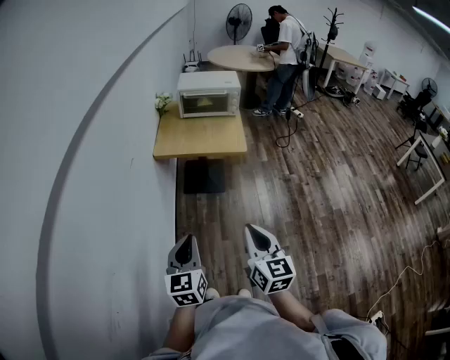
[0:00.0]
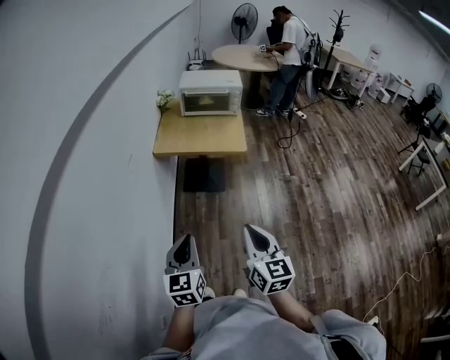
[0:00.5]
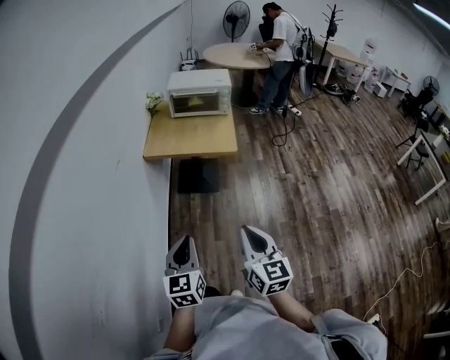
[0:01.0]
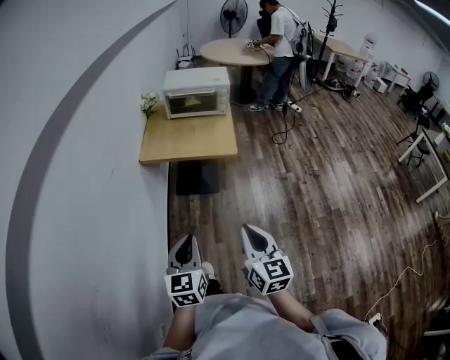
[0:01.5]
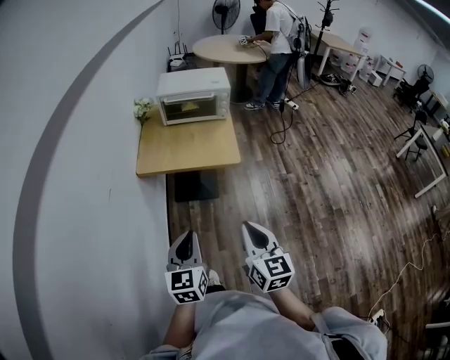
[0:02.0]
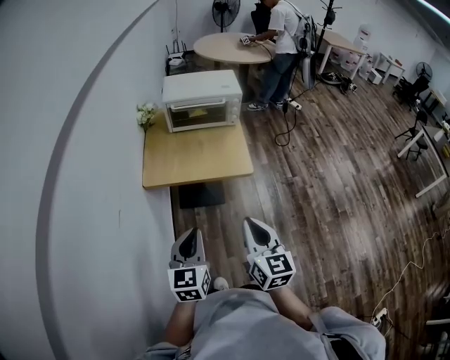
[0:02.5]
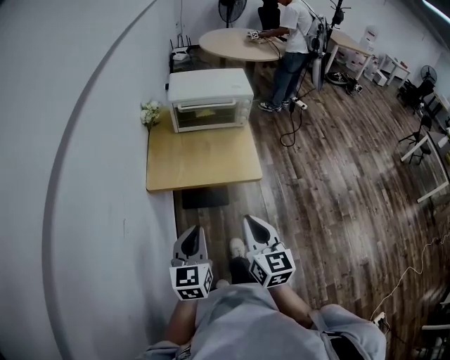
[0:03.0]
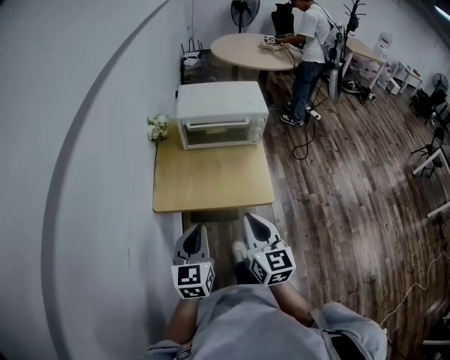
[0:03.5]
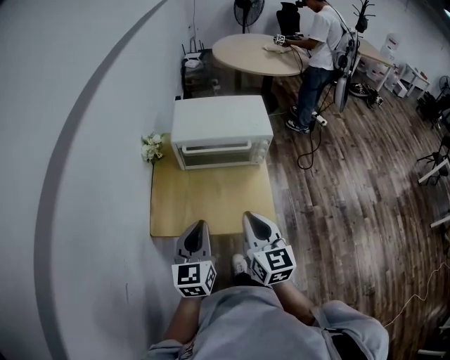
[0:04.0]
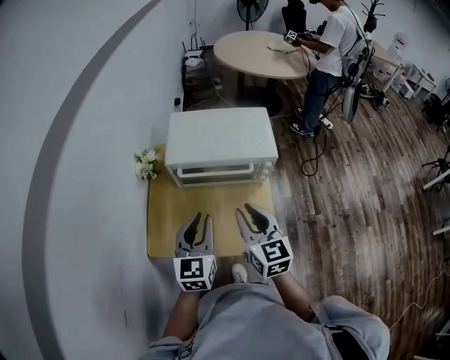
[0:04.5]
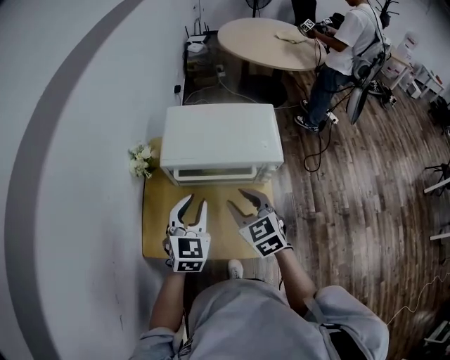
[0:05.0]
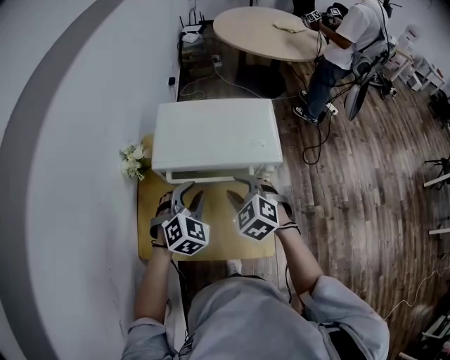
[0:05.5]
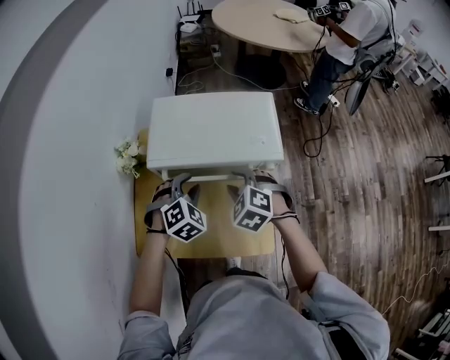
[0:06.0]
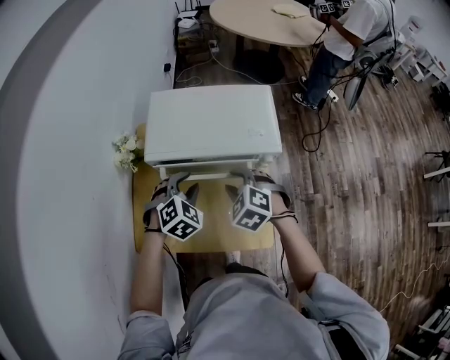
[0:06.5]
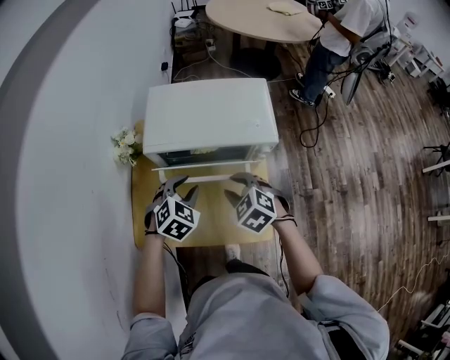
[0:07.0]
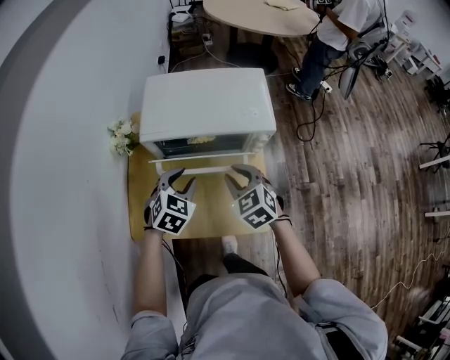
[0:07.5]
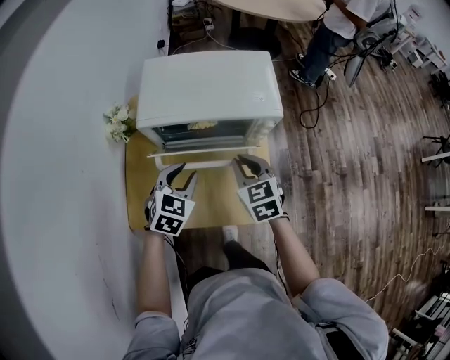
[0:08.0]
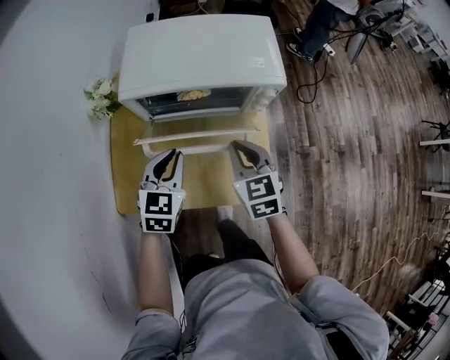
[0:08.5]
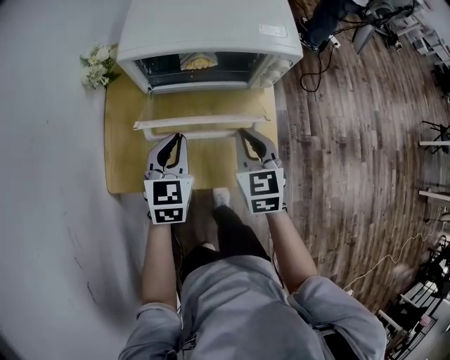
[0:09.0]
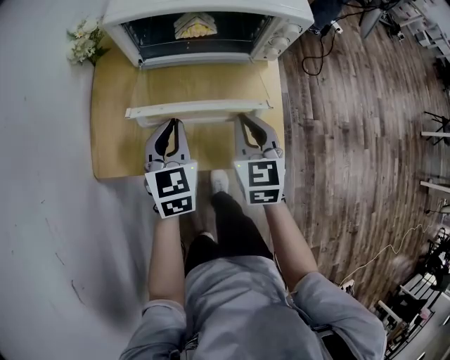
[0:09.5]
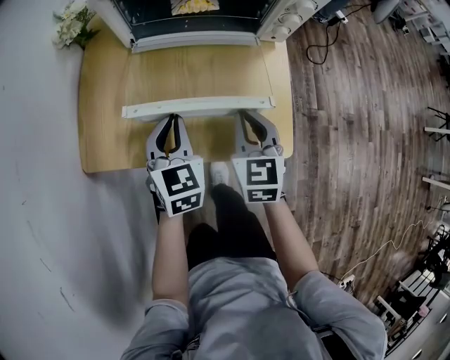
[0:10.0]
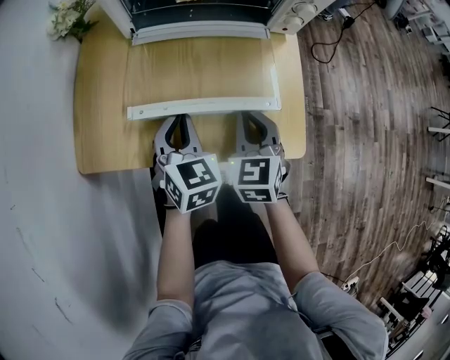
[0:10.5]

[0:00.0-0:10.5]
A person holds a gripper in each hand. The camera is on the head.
0:00.0 to 0:02.0: The two grippers go roughly 15 cm forward.
0:02.0 to 0:04.0: The two grippers travel together, forward, some 40 cm.
0:04.0 to 0:06.5: Both grippers move forward and downward, some 30 cm. The left gripper angles its fingers downward, by about 40 degrees, and opens its fingers; the right gripper angles its fingers downward, by some 40 degrees, and opens.
0:06.5 to 0:08.5: The two grippers go roughly 5 cm backward. The left gripper rotates approximately 40 degrees, and closes up. Meanwhile the right gripper turns by about 40 degrees, and closes up.
0:08.5 to 0:10.5: The left gripper shifts some 20 cm downward, while the right gripper is displaced downward and backward by approximately 20 cm.

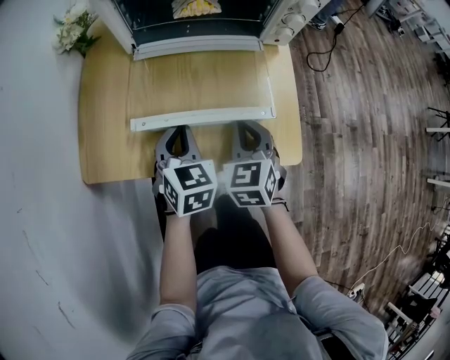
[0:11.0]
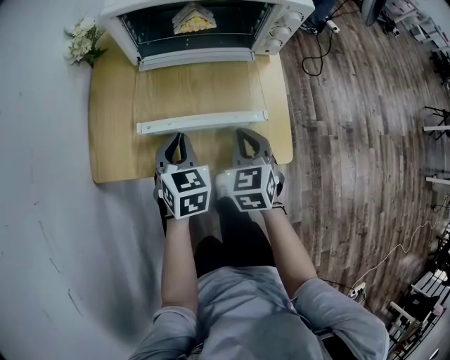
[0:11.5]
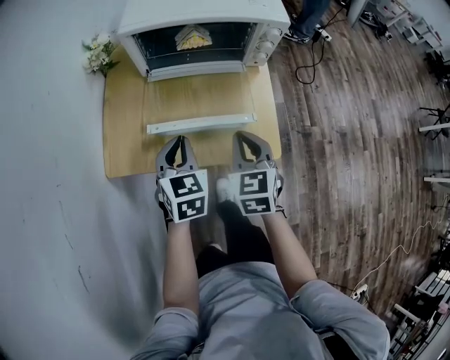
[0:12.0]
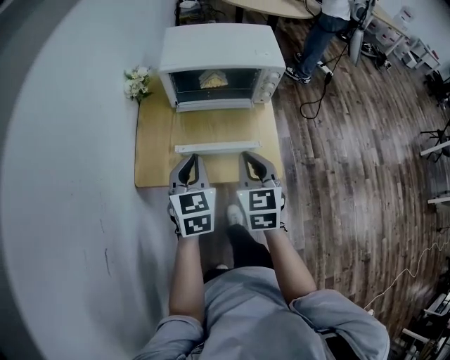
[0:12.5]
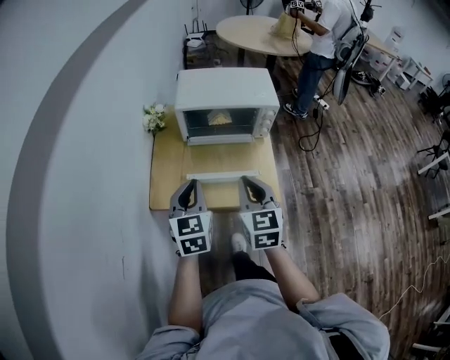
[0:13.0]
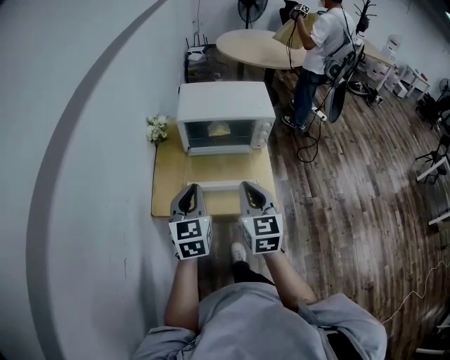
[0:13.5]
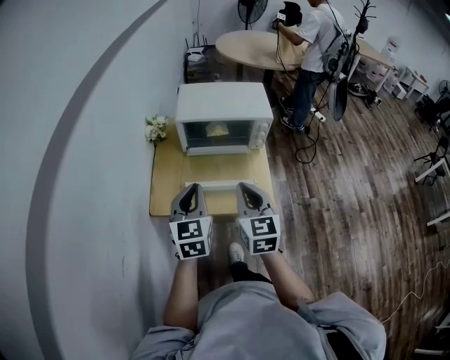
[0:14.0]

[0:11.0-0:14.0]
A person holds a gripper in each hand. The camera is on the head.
0:11.0 to 0:12.5: Both grippers travel together upward, approximately 25 cm.
0:12.5 to 0:14.0: Both grippers move upward, roughly 10 cm.

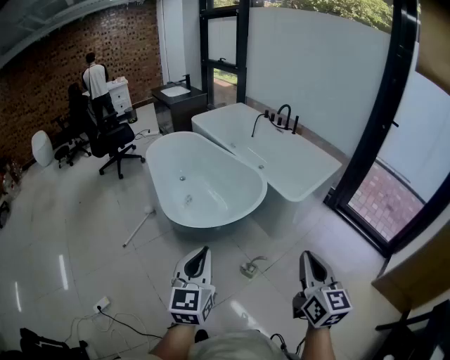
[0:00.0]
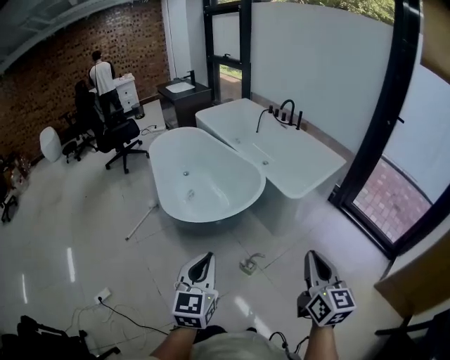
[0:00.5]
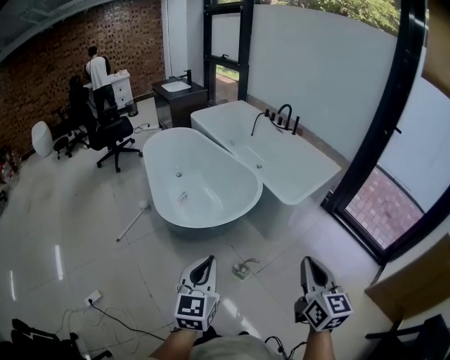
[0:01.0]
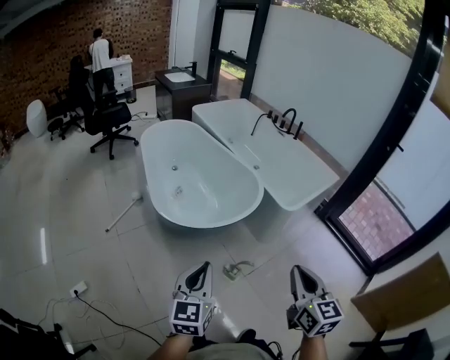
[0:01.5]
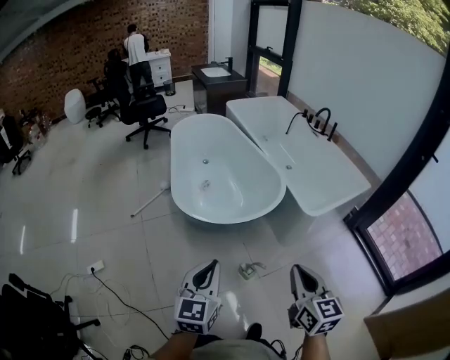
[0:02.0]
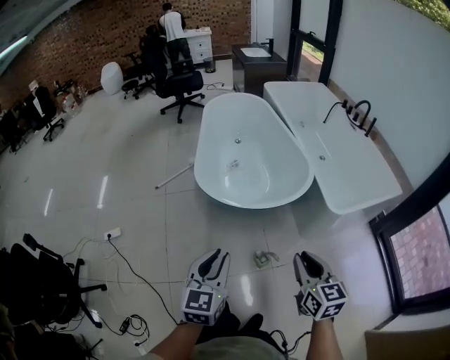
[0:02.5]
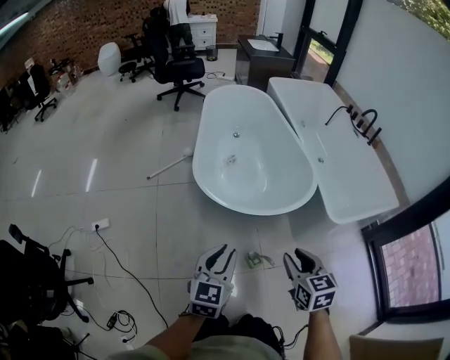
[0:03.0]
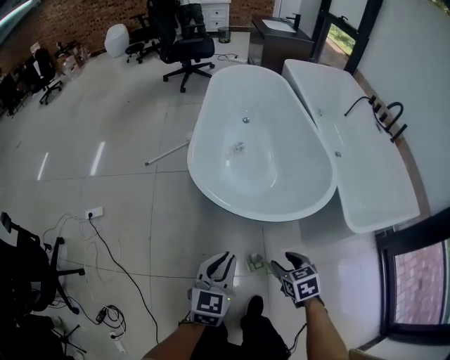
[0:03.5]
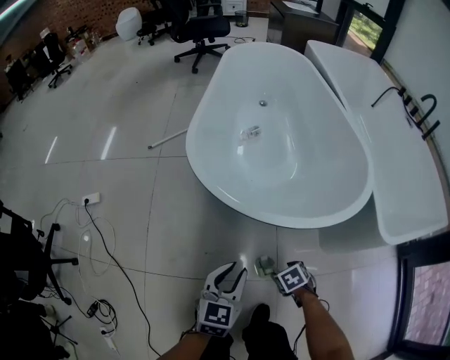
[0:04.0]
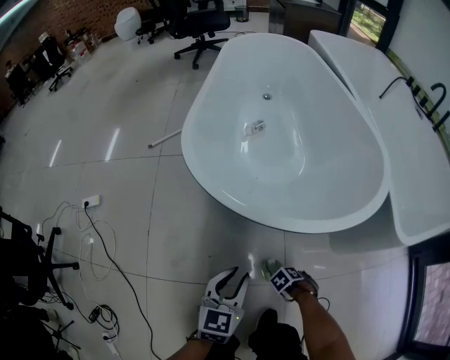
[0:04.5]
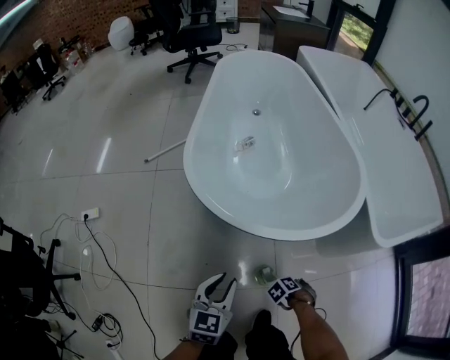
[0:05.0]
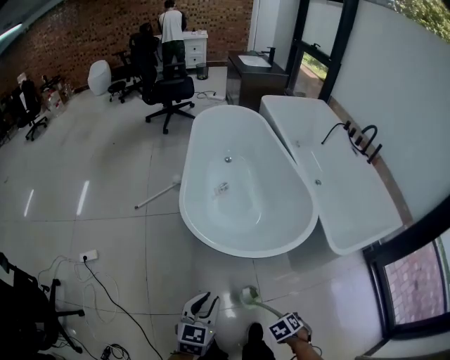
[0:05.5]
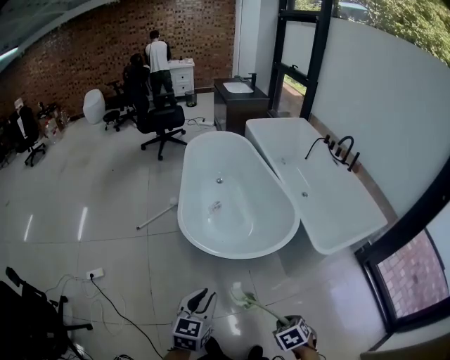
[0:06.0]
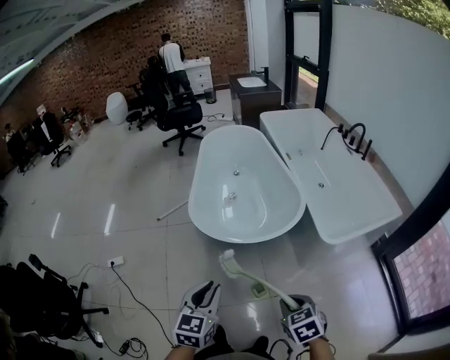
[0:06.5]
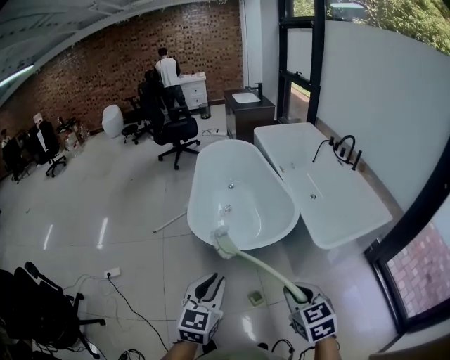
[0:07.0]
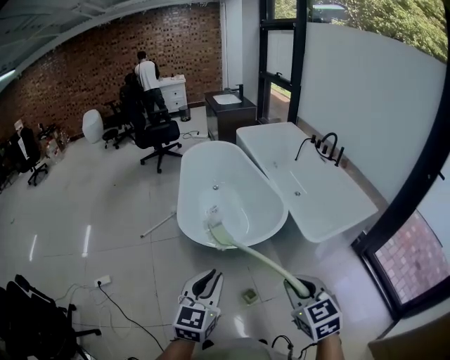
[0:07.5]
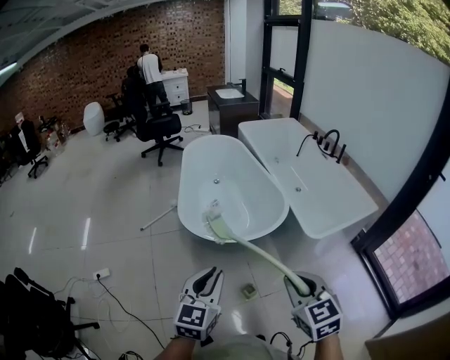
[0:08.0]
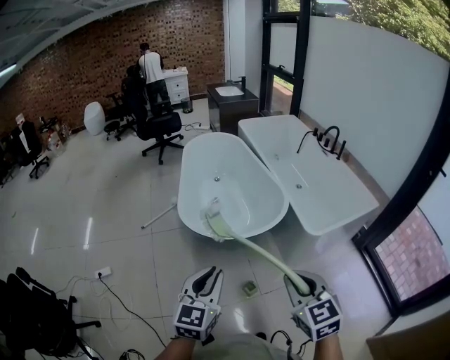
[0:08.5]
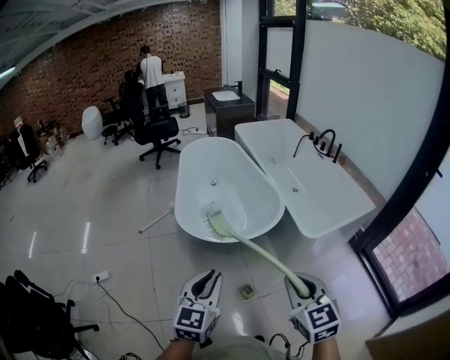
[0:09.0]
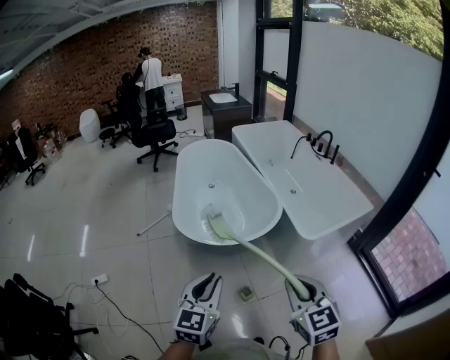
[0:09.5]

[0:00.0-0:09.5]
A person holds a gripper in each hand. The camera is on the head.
0:00.0 to 0:02.0: The left gripper goes left and right, roughly 10 cm each way, reversing 2 times. The right gripper goes some 15 cm forward, downward and to the right, and changes its angle by roughly 20 degrees.
0:02.0 to 0:04.0: The grippers both shift downward by some 70 cm. The right gripper points its fingers approximately 60 degrees further downward, and opens up, while the left gripper turns by some 20 degrees, and opens.
0:04.0 to 0:05.5: The grippers both shift upward by roughly 35 cm. The right gripper changes its angle by approximately 20 degrees, and closes up.
0:05.5 to 0:07.5: The left gripper moves upward, approximately 30 cm. The right gripper is displaced upward by roughly 50 cm, and tips its fingers upward by some 60 degrees.
0:07.5 to 0:09.5: The grippers move only a little.

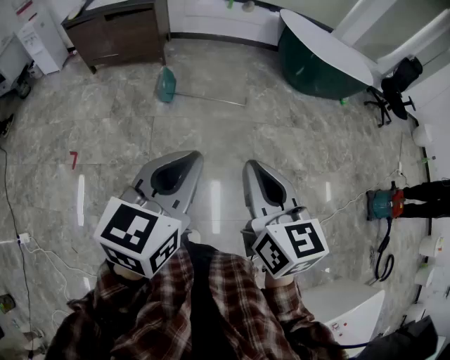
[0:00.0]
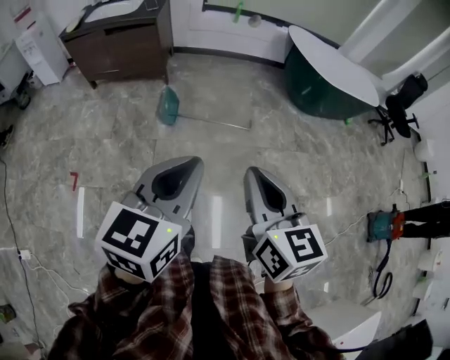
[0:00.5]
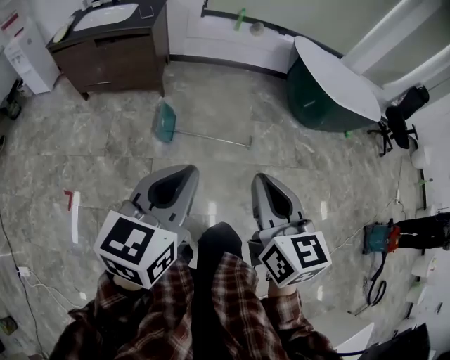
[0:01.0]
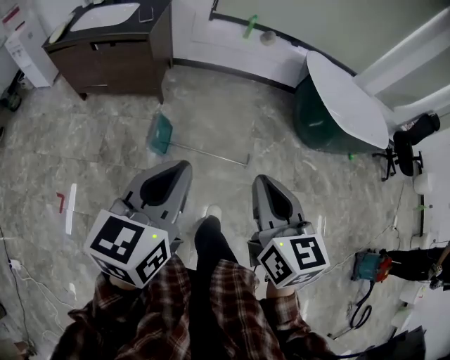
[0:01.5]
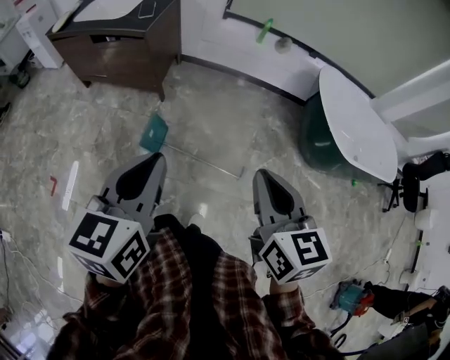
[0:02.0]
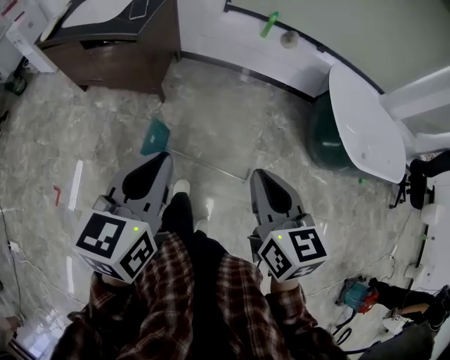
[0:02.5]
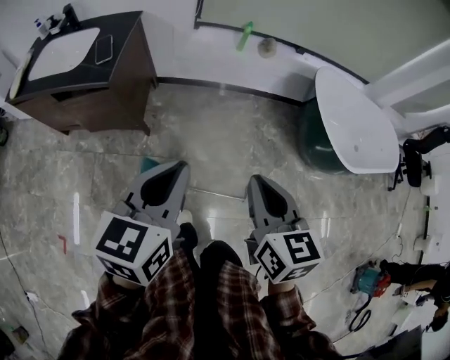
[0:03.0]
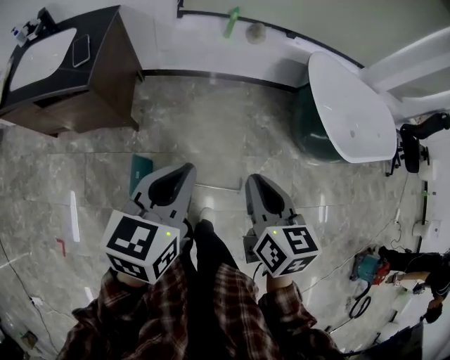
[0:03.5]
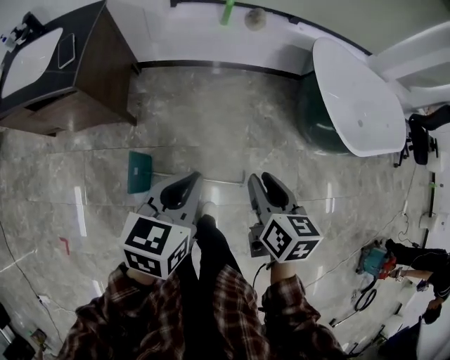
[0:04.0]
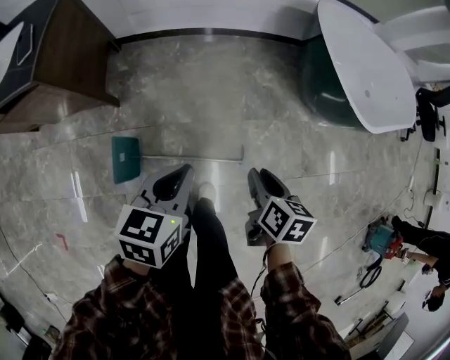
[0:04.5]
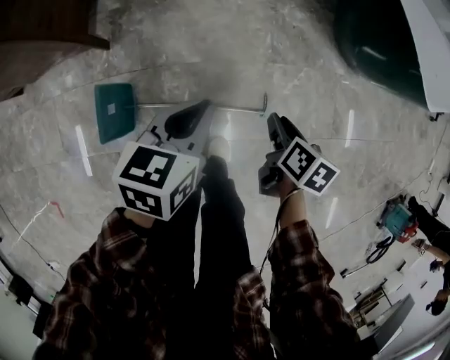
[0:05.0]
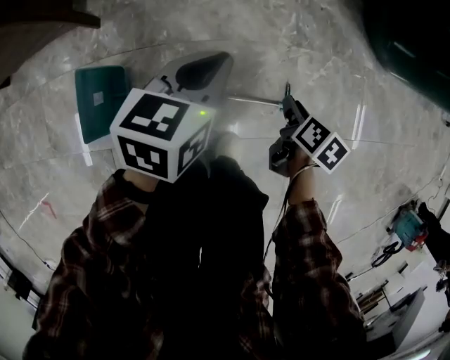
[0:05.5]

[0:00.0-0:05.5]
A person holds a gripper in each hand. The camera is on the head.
0:00.0 to 0:02.0: The two grippers travel together, forward, approximately 60 cm. The left gripper swivels roughly 20 degrees.
0:02.0 to 0:03.5: The grippers both shift forward by approximately 25 cm. The right gripper swivels about 20 degrees; the left gripper turns by some 20 degrees.
0:03.5 to 0:05.5: Both grippers travel together downward, approximately 60 cm. The right gripper turns by about 40 degrees, and opens up.
